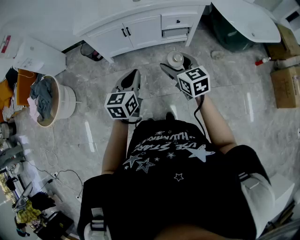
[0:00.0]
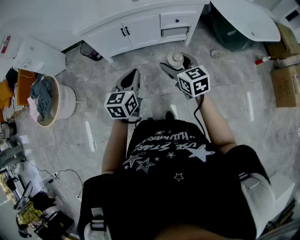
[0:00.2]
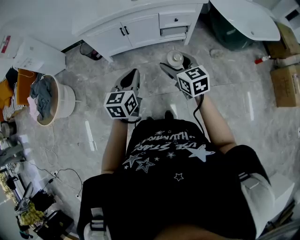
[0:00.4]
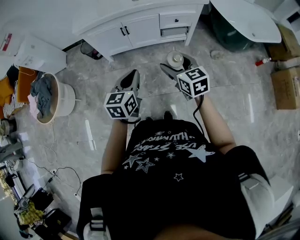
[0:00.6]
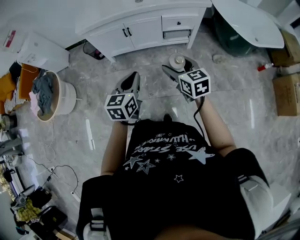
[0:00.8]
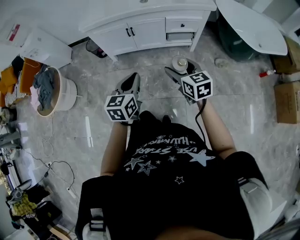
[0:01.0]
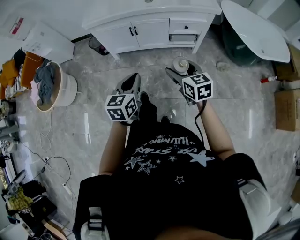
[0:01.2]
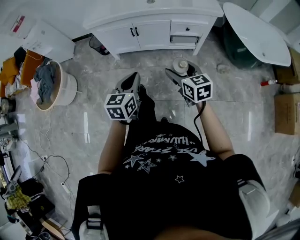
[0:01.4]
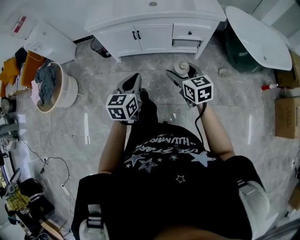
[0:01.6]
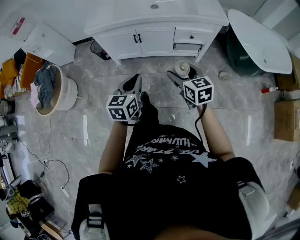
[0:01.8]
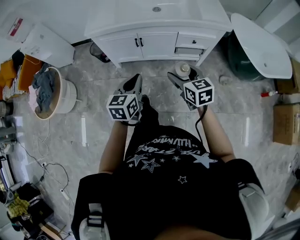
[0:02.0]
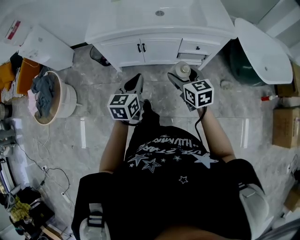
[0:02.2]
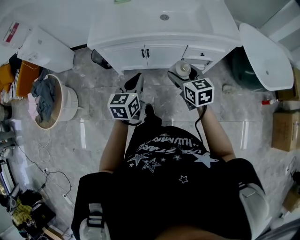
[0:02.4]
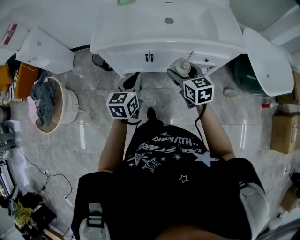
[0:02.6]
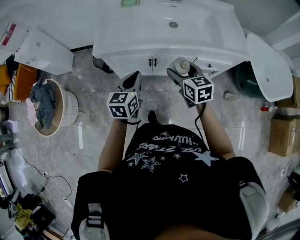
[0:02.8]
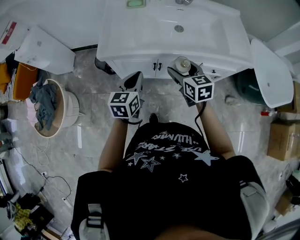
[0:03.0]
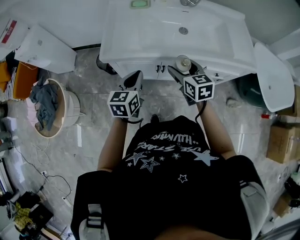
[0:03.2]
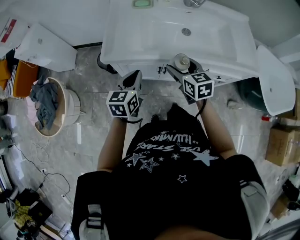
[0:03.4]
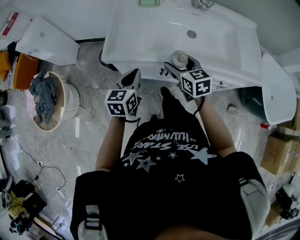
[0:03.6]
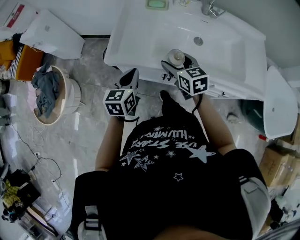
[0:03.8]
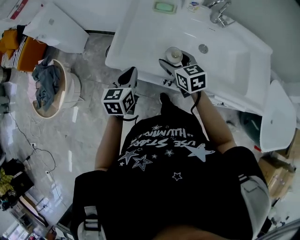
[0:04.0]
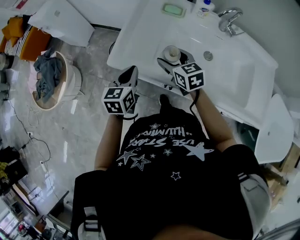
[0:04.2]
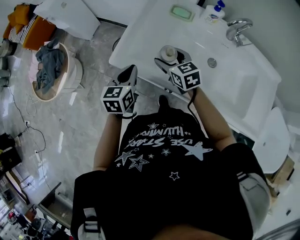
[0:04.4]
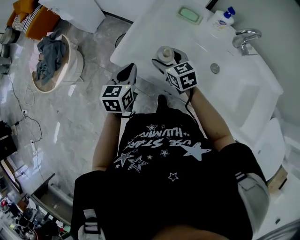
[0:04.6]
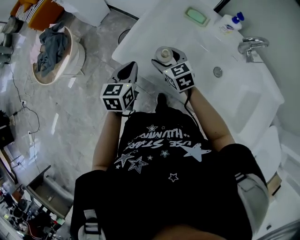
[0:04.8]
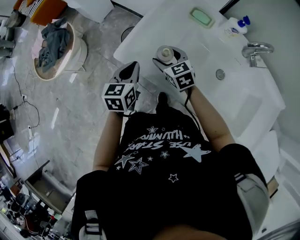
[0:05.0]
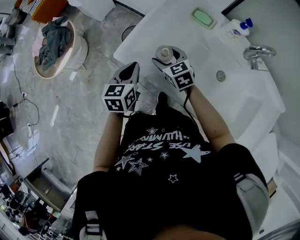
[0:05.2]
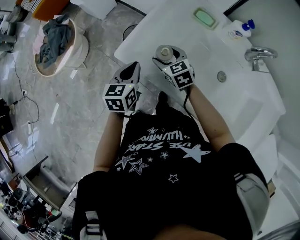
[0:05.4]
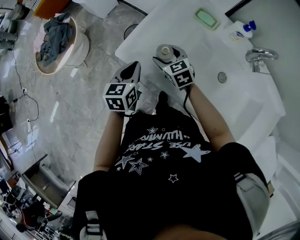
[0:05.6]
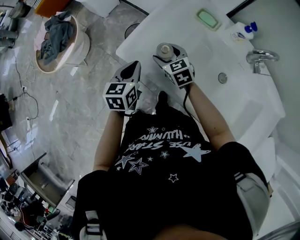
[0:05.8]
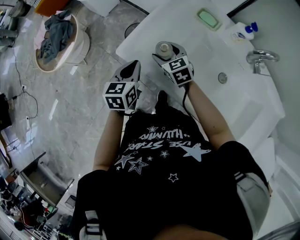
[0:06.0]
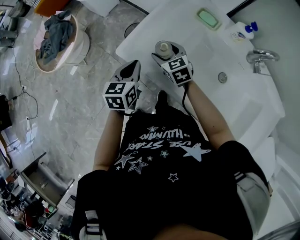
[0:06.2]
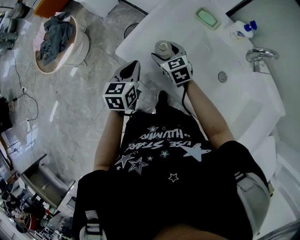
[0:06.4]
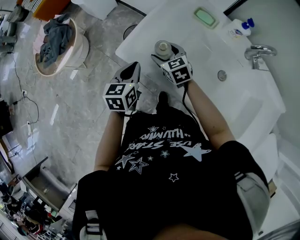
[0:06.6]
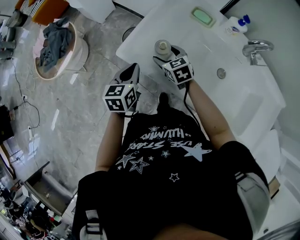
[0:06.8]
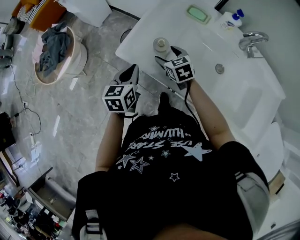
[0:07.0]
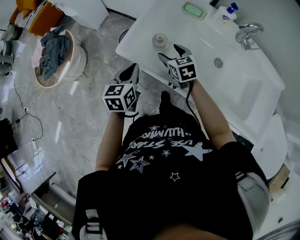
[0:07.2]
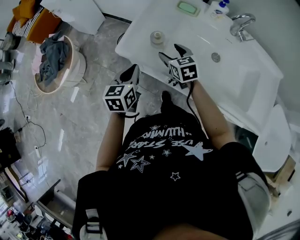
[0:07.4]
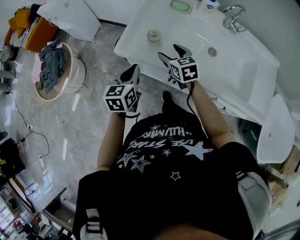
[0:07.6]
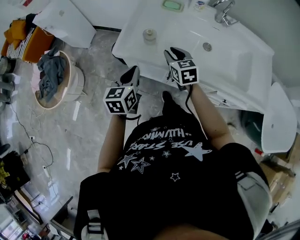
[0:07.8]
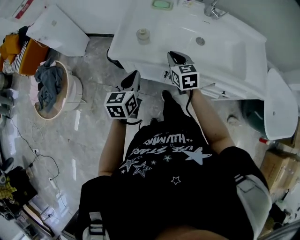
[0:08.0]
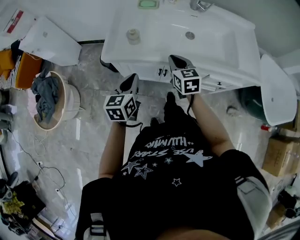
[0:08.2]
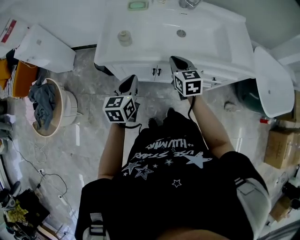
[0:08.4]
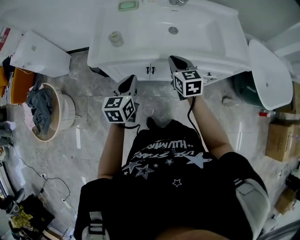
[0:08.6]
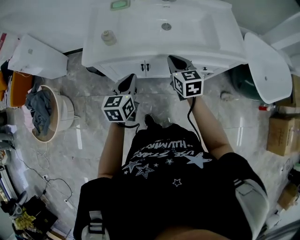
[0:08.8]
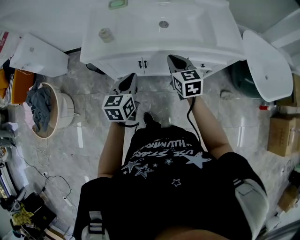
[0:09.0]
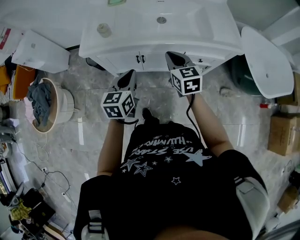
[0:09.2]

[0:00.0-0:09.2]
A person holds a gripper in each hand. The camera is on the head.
0:00.0 to 0:01.6: The right gripper shifts by roughly 5 cm.
0:01.6 to 0:03.0: The two grippers travel together, forward and to the left, about 40 cm.
0:03.0 to 0:04.6: The left gripper changes place by some 25 cm, and changes its angle by roughly 30 degrees, while the right gripper ends up roughly 35 cm from where it was, and changes its angle by about 40 degrees.
0:04.6 to 0:06.2: The right gripper goes roughly 5 cm downward.
0:06.2 to 0:07.6: The left gripper shifts roughly 10 cm backward. Meanwhile the right gripper heads backward and upward, covering approximately 15 cm, and swivels roughly 20 degrees.
0:07.6 to 0:09.2: The right gripper shifts by approximately 35 cm, rotates approximately 30 degrees, and closes up. The left gripper ends up about 25 cm from where it was, and rotates some 20 degrees.

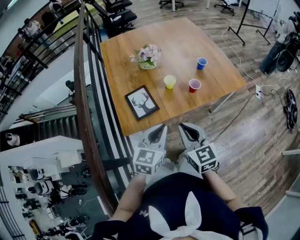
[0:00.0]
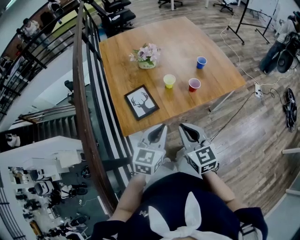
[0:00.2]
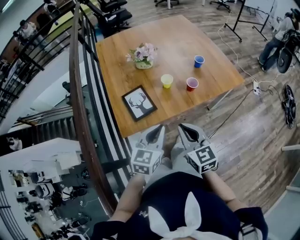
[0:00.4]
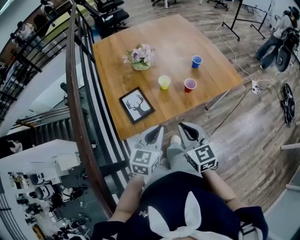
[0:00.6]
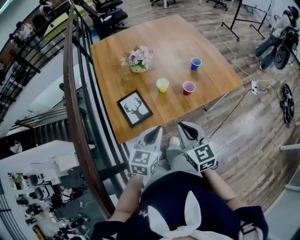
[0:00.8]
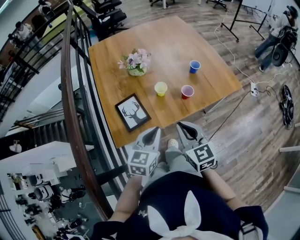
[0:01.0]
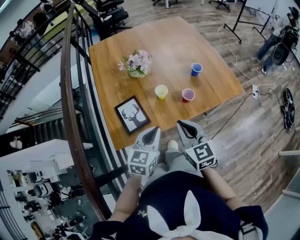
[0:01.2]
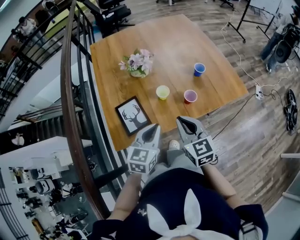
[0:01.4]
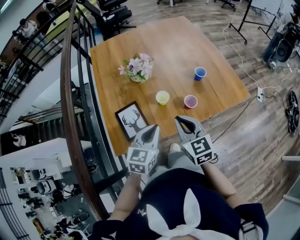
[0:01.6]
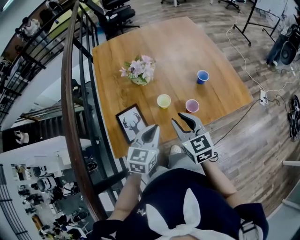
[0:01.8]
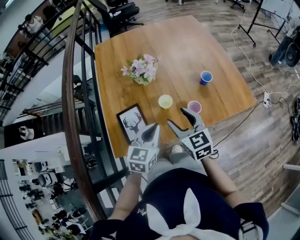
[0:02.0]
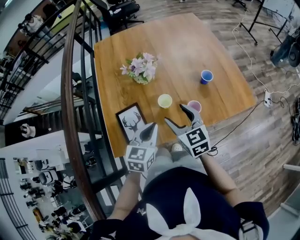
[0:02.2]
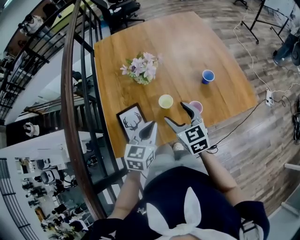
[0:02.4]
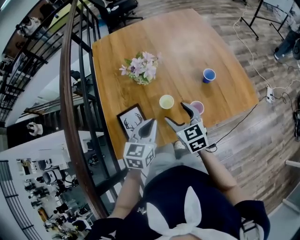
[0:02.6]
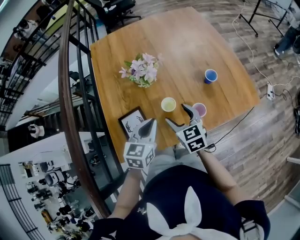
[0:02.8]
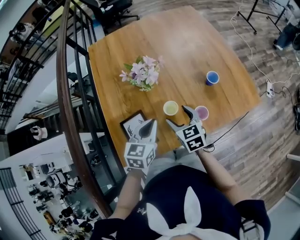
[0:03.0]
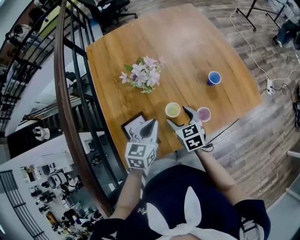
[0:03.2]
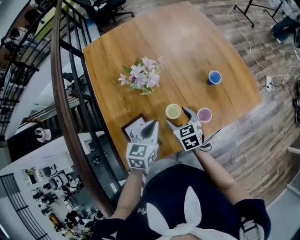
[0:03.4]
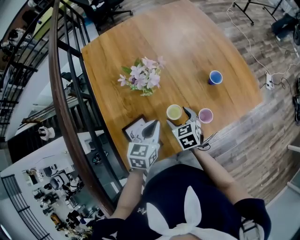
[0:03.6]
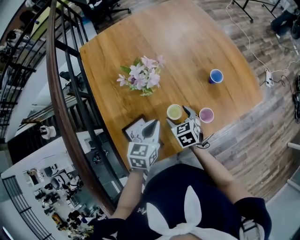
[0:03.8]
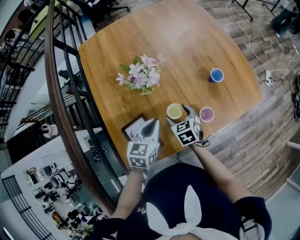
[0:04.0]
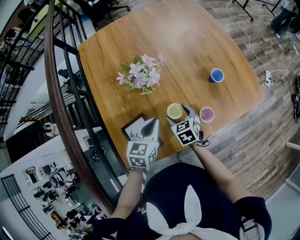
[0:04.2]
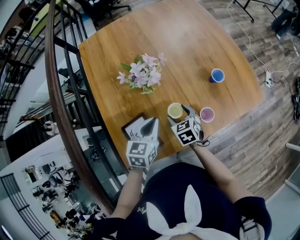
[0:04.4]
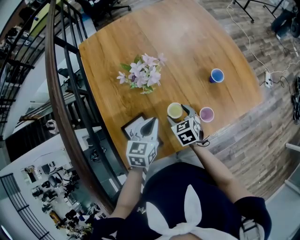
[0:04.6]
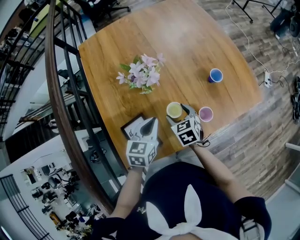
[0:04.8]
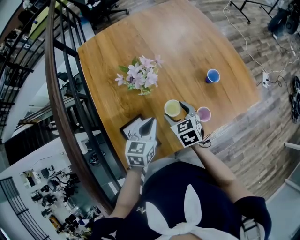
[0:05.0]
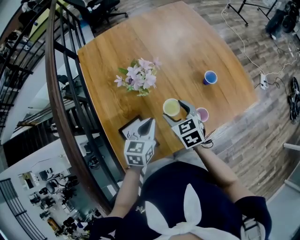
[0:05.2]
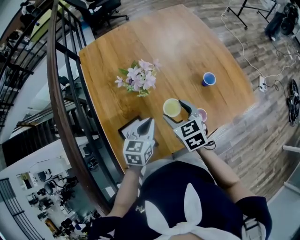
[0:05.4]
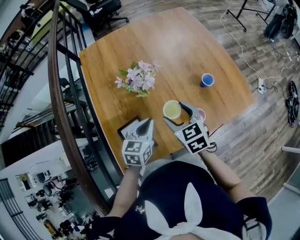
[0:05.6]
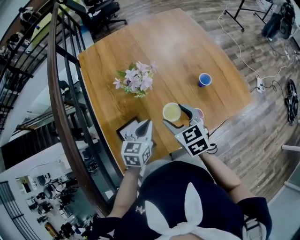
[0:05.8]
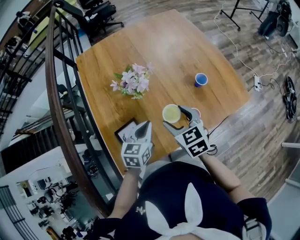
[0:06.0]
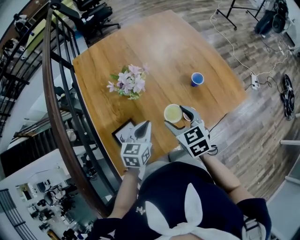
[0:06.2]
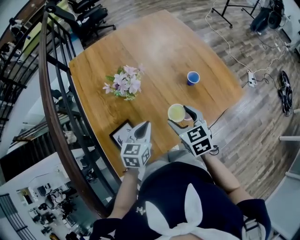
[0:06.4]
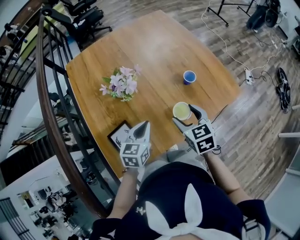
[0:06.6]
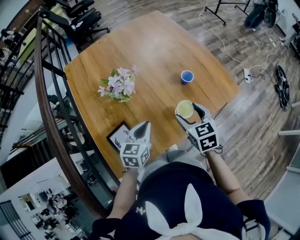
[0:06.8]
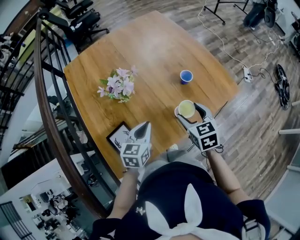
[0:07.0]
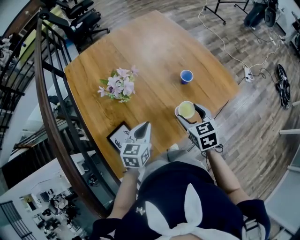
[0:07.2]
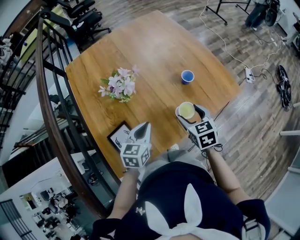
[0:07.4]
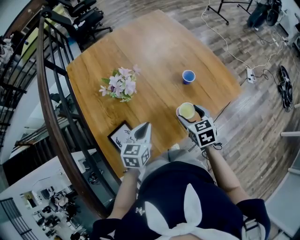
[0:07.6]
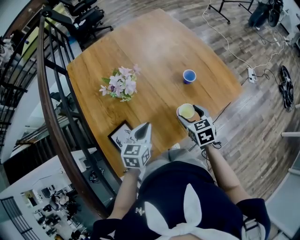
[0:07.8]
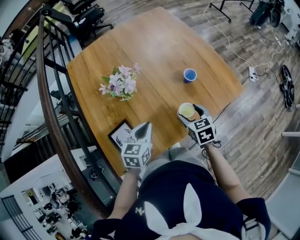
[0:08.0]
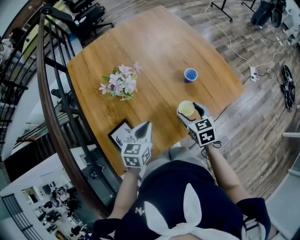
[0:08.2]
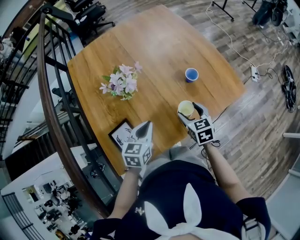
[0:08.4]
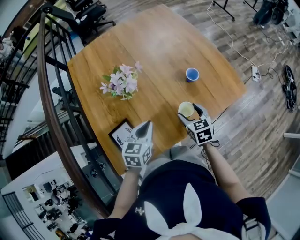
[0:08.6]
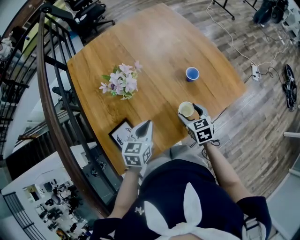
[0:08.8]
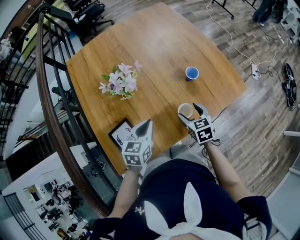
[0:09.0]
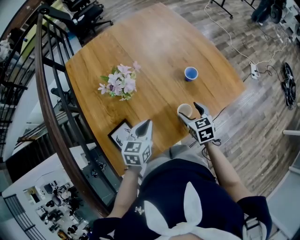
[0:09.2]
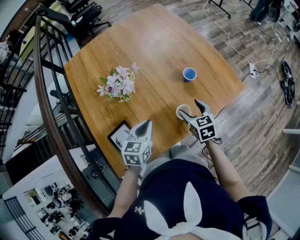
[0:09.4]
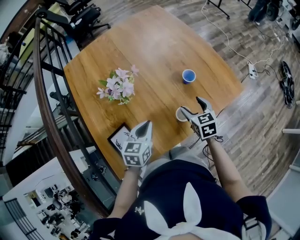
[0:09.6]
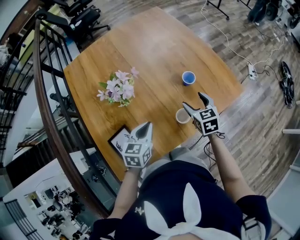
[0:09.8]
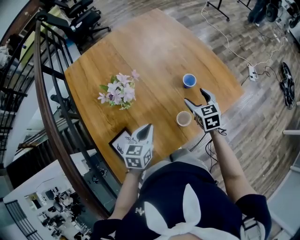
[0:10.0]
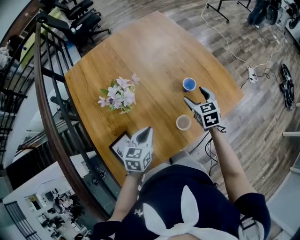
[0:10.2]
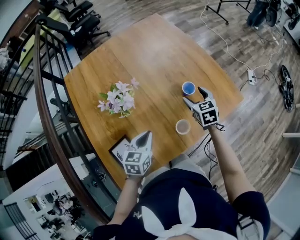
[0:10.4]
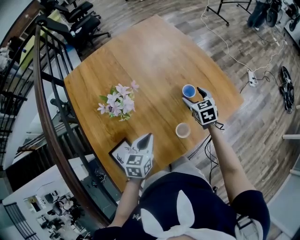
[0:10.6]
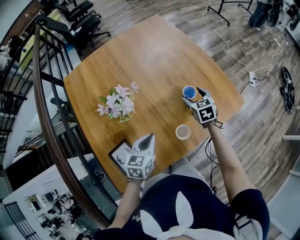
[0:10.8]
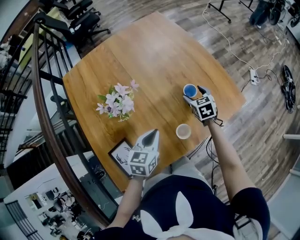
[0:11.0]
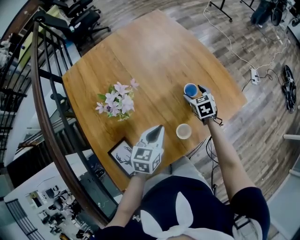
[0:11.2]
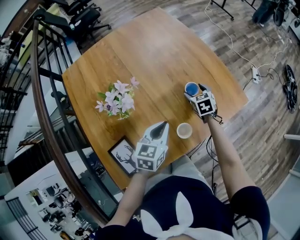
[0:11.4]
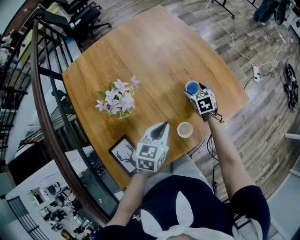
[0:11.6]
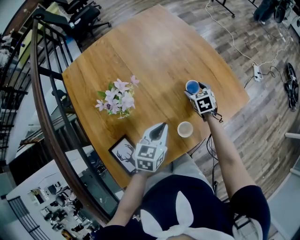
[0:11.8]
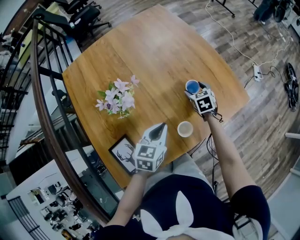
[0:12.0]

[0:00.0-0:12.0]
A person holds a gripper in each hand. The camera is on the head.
0:00.0 to 0:01.6: Both grippers travel together forward, some 15 cm.
0:01.6 to 0:03.0: The right gripper heads forward and downward, covering about 15 cm, and opens up. The left gripper travels forward by roughly 15 cm.
0:03.0 to 0:04.4: The right gripper heads downward, covering roughly 10 cm; the left gripper shifts by approximately 5 cm.
0:04.4 to 0:06.0: The right gripper shifts approximately 15 cm upward.
0:06.0 to 0:07.6: The right gripper travels to the right and downward by approximately 15 cm. Meanwhile the left gripper travels to the right by approximately 5 cm.
0:07.6 to 0:09.0: The right gripper travels downward by some 5 cm.
0:09.0 to 0:10.4: The right gripper heads forward, covering about 15 cm.
0:10.4 to 0:12.0: The left gripper is displaced to the right and forward by some 10 cm. Meanwhile the right gripper is displaced downward and forward by some 10 cm.

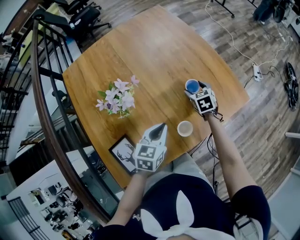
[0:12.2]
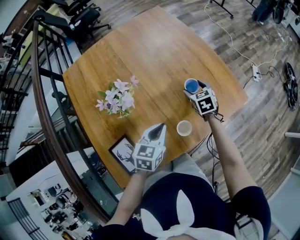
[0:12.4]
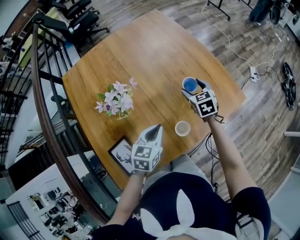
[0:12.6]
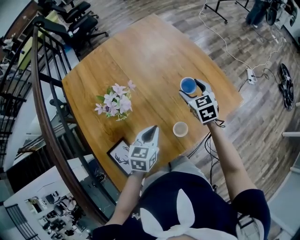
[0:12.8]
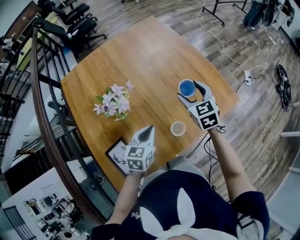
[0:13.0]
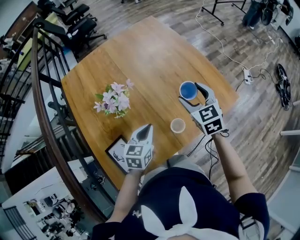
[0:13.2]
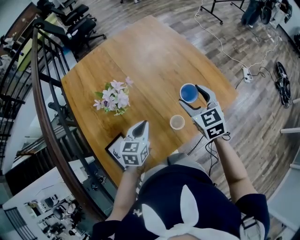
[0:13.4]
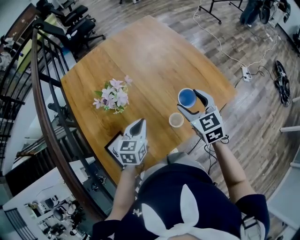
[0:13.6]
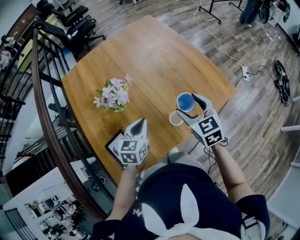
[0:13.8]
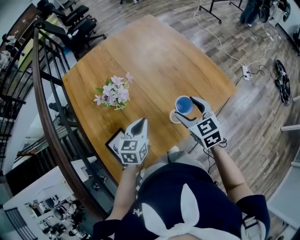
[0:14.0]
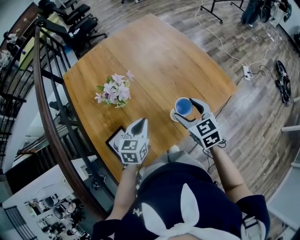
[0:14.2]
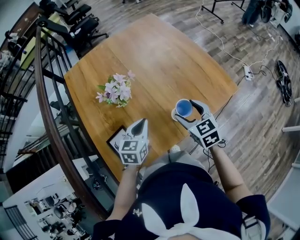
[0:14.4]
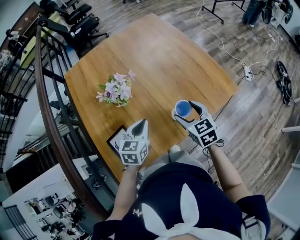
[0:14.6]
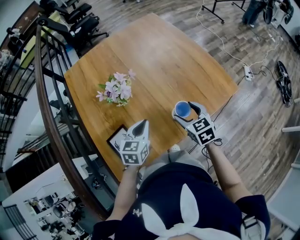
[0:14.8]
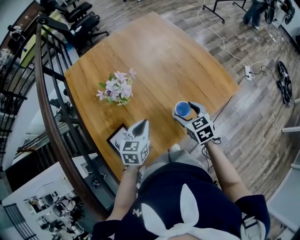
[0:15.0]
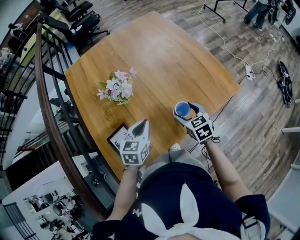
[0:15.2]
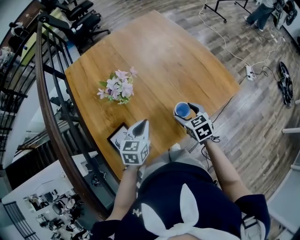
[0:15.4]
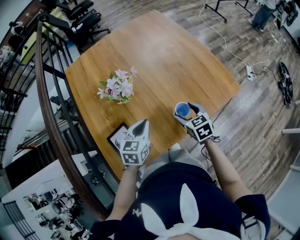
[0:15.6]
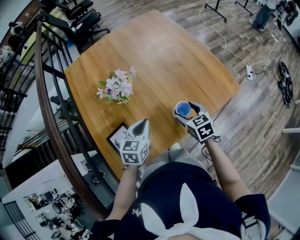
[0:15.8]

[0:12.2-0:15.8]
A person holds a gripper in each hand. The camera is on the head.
0:12.2 to 0:14.0: The right gripper travels backward and upward by about 25 cm; the left gripper travels to the left by approximately 5 cm.
0:14.0 to 0:15.8: The right gripper is displaced downward by approximately 10 cm.
